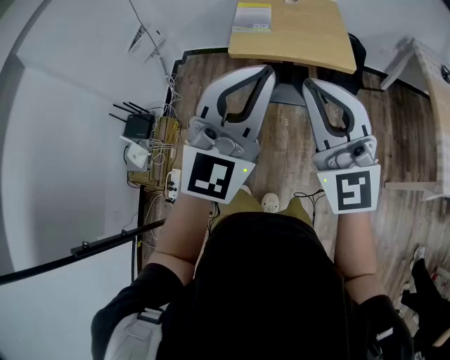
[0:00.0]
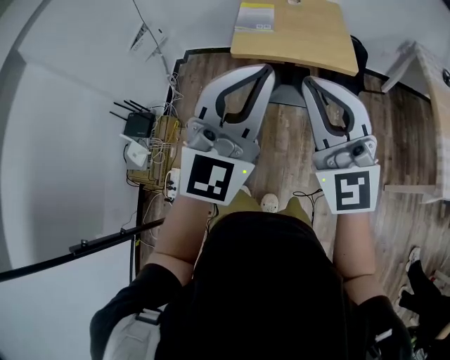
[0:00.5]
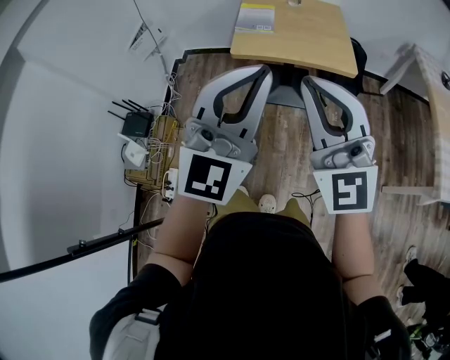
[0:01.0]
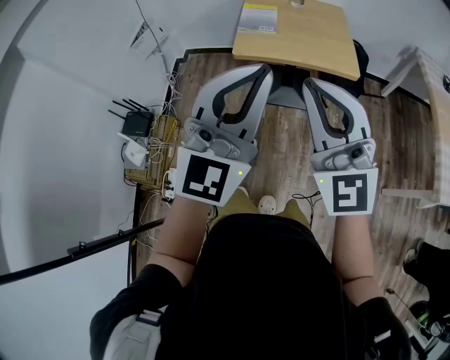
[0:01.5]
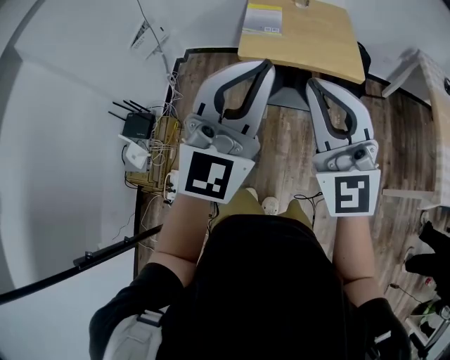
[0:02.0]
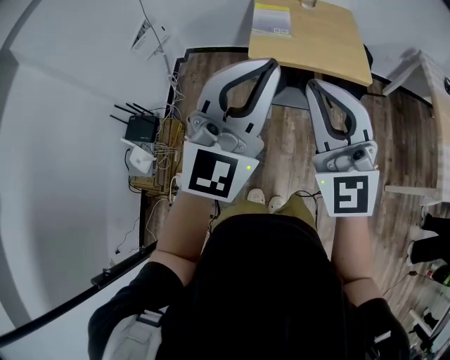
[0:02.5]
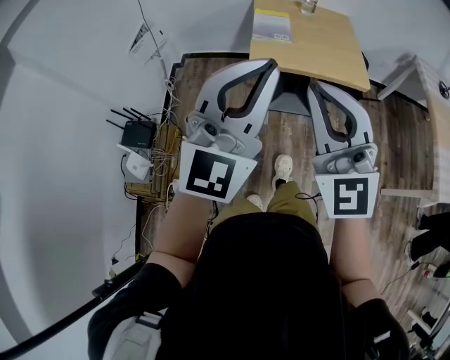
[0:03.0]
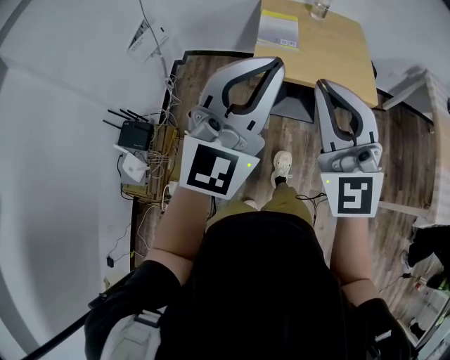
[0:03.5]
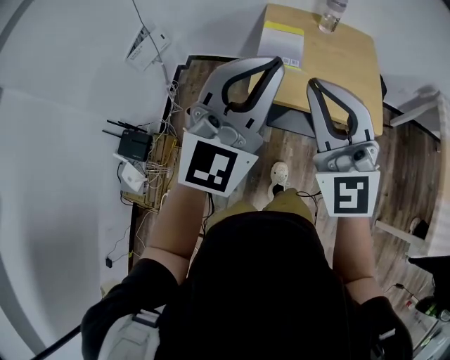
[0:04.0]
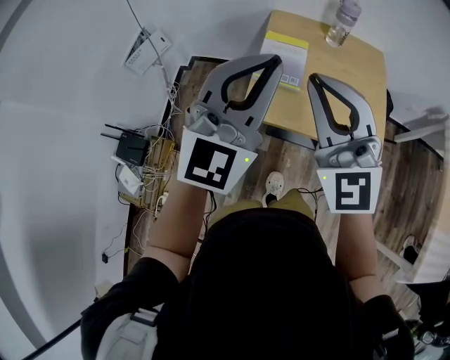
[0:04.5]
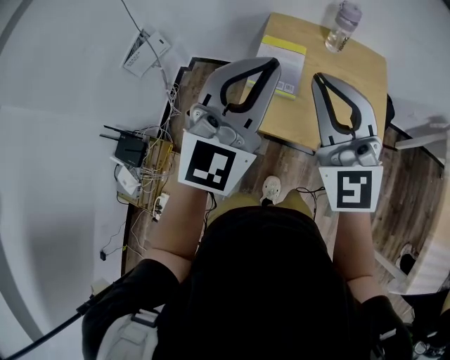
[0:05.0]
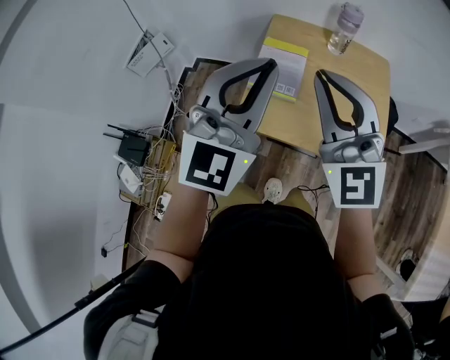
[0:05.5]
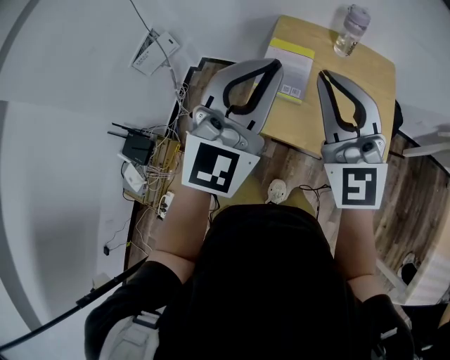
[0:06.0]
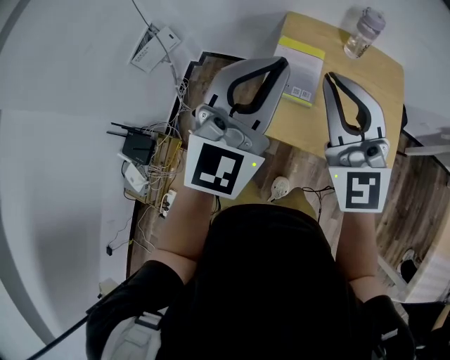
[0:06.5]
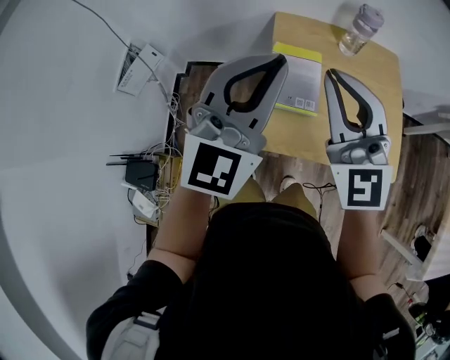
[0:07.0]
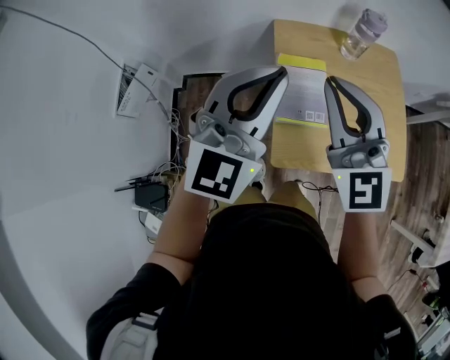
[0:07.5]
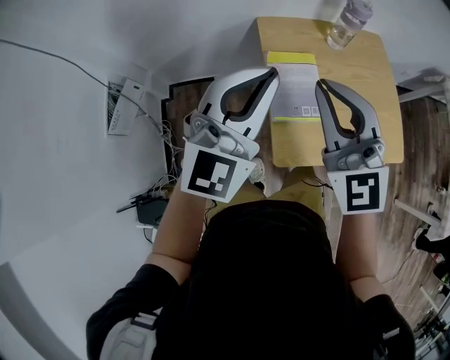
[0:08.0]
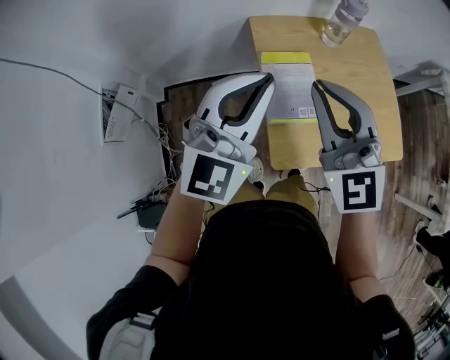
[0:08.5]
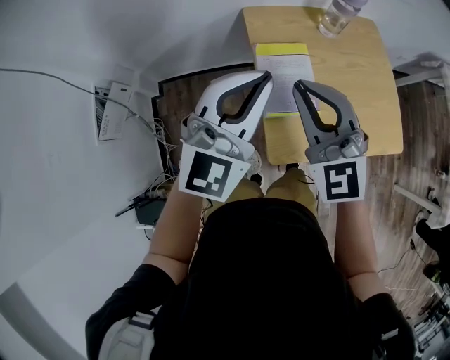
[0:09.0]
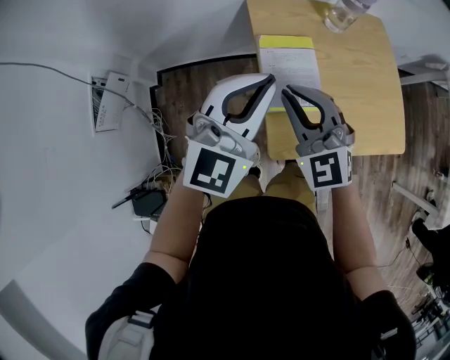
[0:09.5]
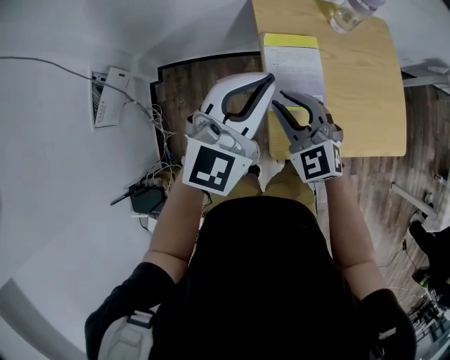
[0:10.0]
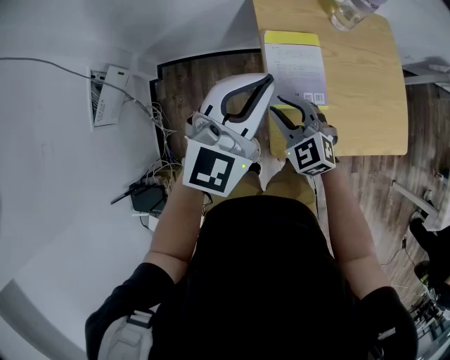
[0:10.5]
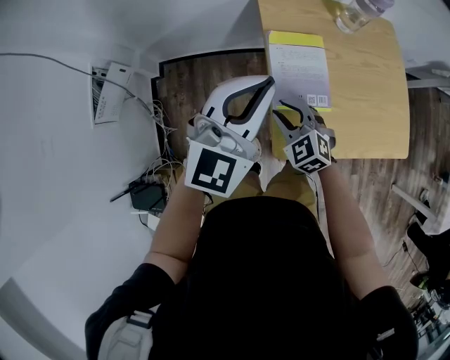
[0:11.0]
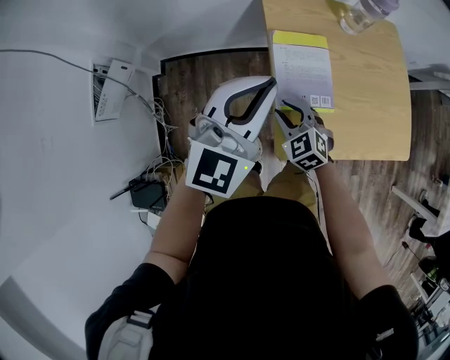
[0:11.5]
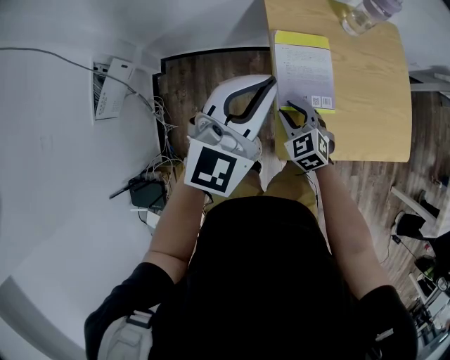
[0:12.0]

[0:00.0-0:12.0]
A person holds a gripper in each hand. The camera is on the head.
0:00.0 to 0:02.0: The right gripper changes place by roughly 5 cm, while the left gripper moves to the left, some 5 cm.
0:02.0 to 0:04.0: Both grippers move forward, approximately 25 cm.
0:04.0 to 0:06.0: Both grippers travel together forward and to the right, approximately 20 cm.
0:06.0 to 0:08.0: The left gripper shifts roughly 20 cm forward and to the left, and rotates about 20 degrees. Meanwhile the right gripper shifts about 20 cm to the left and forward, and changes its angle by some 20 degrees.
0:08.0 to 0:10.0: The right gripper shifts approximately 20 cm downward, and rotates some 30 degrees. Meanwhile the left gripper is displaced downward by approximately 10 cm.
0:10.0 to 0:12.0: The right gripper shifts about 15 cm downward, and turns by roughly 20 degrees.

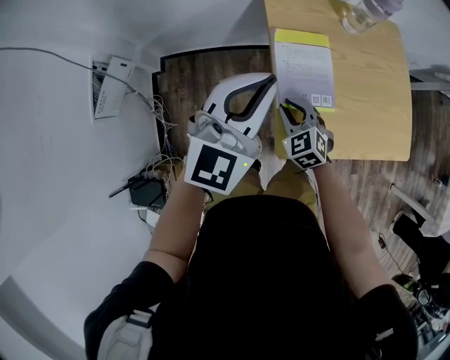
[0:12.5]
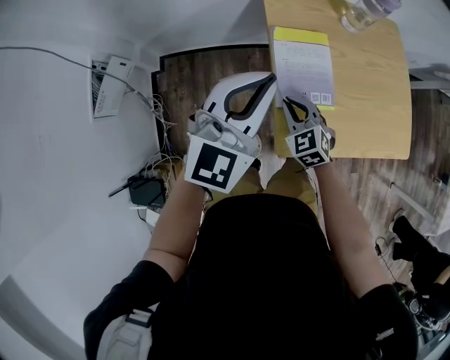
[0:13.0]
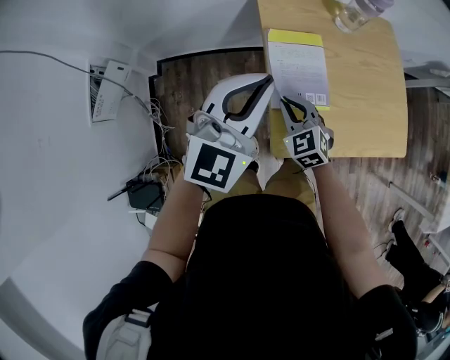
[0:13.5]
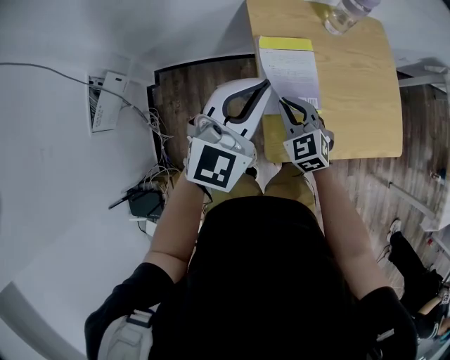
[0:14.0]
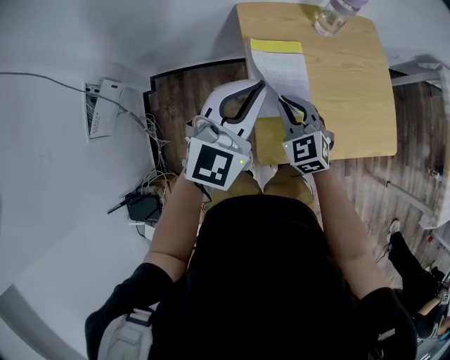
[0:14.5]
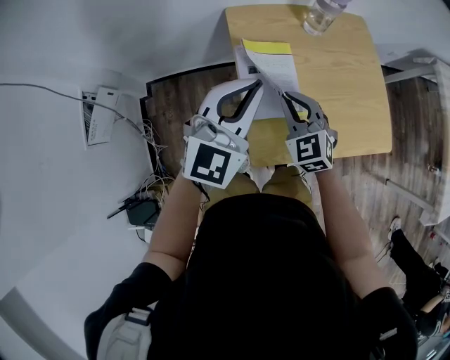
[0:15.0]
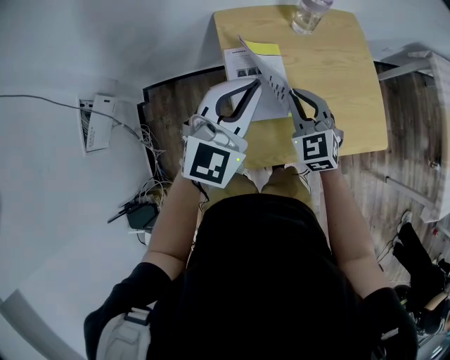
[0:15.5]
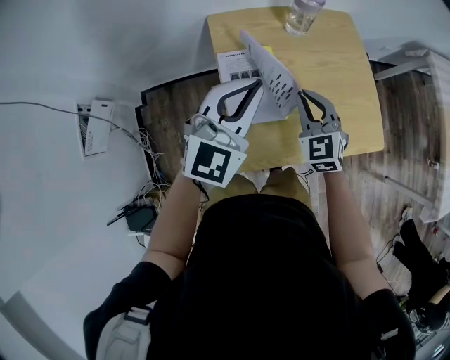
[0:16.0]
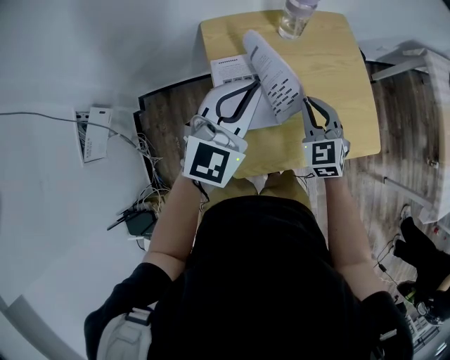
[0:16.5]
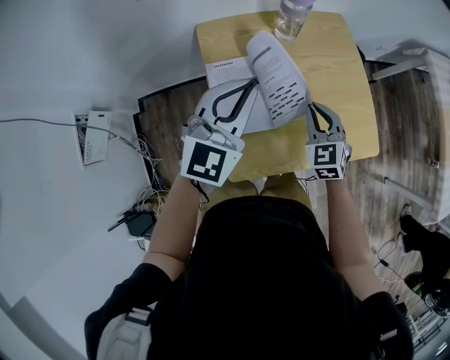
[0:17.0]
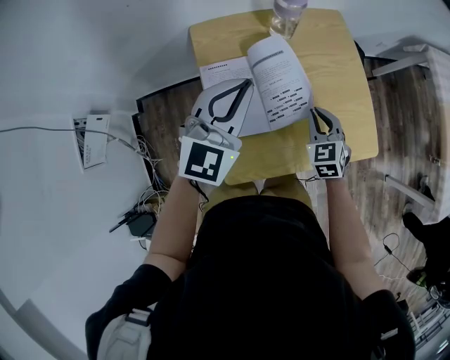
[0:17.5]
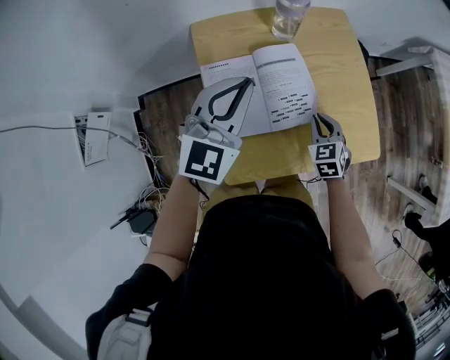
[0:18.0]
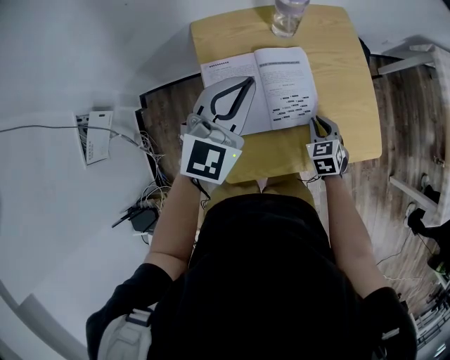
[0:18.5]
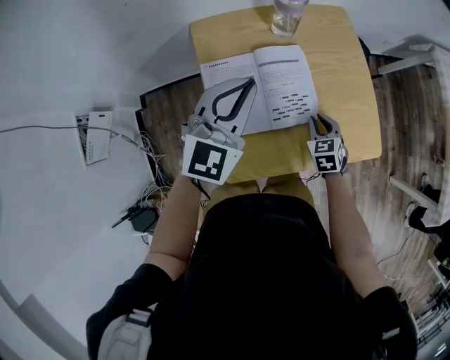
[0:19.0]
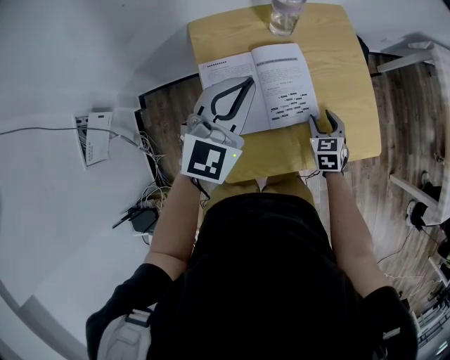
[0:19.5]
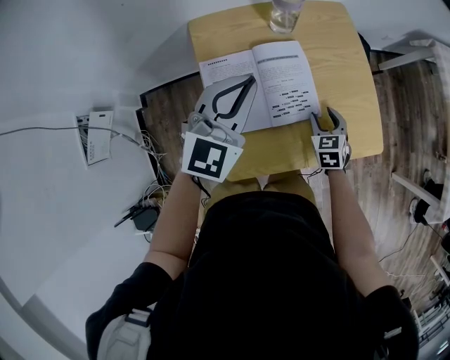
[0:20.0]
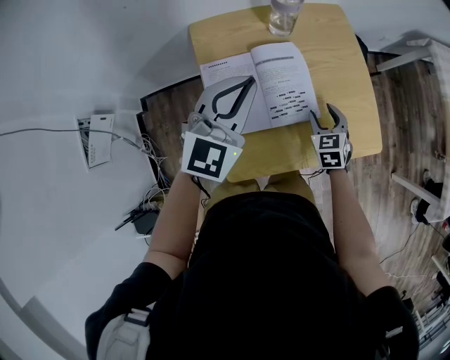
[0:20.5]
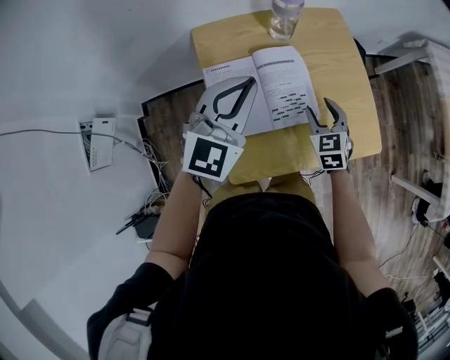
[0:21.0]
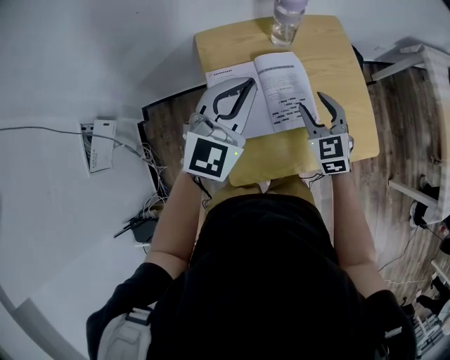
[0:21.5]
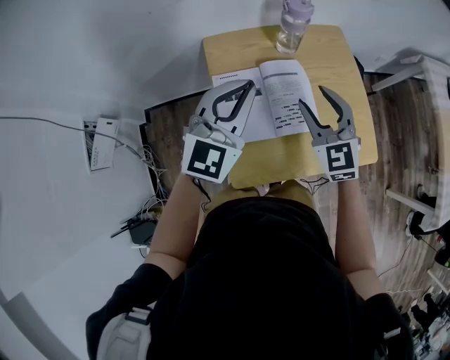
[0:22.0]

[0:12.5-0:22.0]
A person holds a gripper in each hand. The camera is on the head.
0:12.5 to 0:14.5: The right gripper travels upward by some 10 cm.
0:14.5 to 0:16.5: The right gripper shifts approximately 15 cm to the right, while the left gripper heads to the right and forward, covering about 10 cm.
0:16.5 to 0:18.0: The right gripper is displaced downward and to the right by roughly 15 cm, while the left gripper shifts by roughly 5 cm.
0:18.0 to 0:20.0: The right gripper opens up.
0:20.0 to 0:22.0: The right gripper is displaced upward and to the left by approximately 25 cm, and swivels about 40 degrees; the left gripper is displaced upward by about 5 cm.

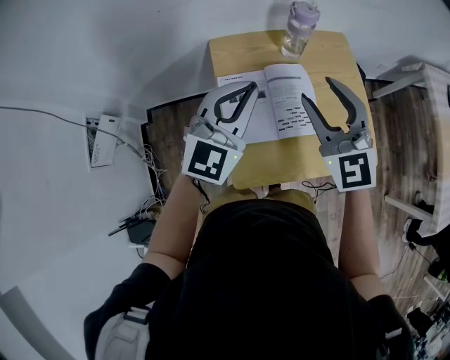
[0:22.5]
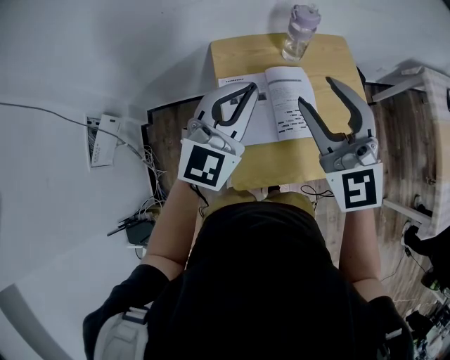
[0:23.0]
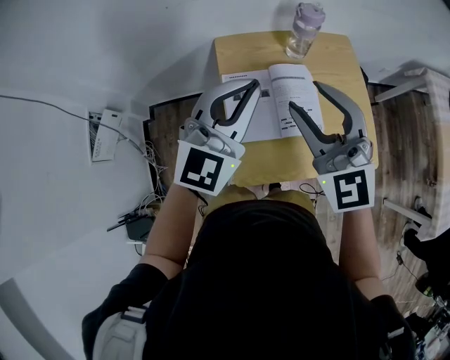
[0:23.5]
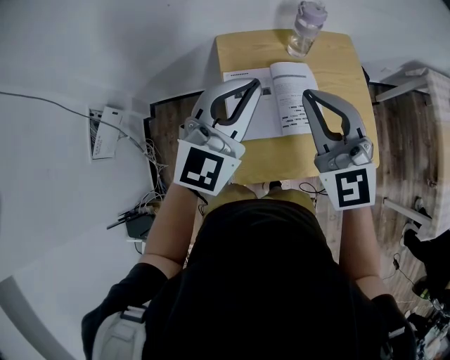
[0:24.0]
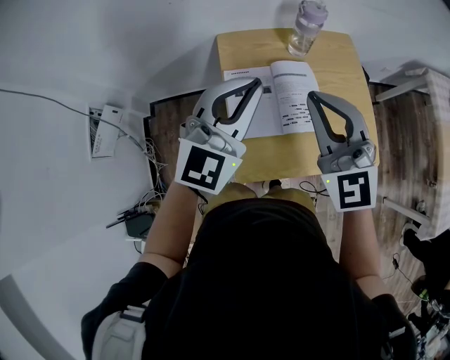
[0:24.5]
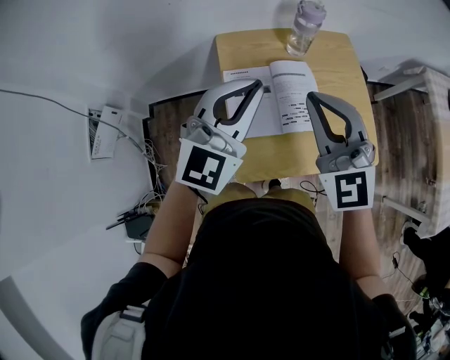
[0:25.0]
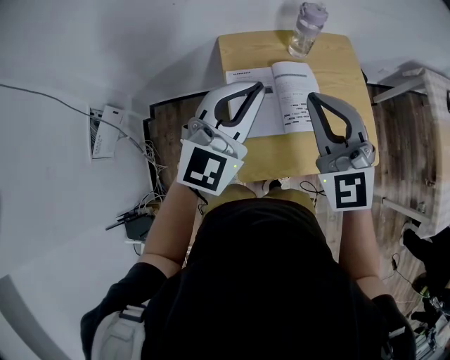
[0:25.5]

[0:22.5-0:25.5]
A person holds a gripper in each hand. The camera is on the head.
0:22.5 to 0:24.0: The right gripper changes place by roughly 5 cm, and closes, while the left gripper moves some 5 cm.
0:24.0 to 0:25.5: The grippers stay close to where they were, moving slightly.

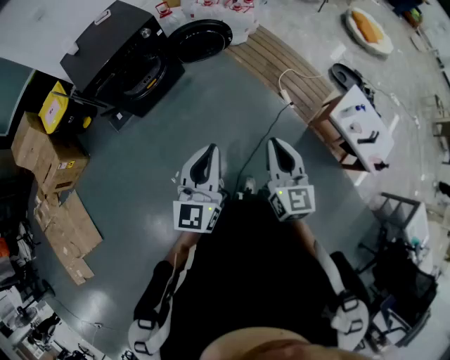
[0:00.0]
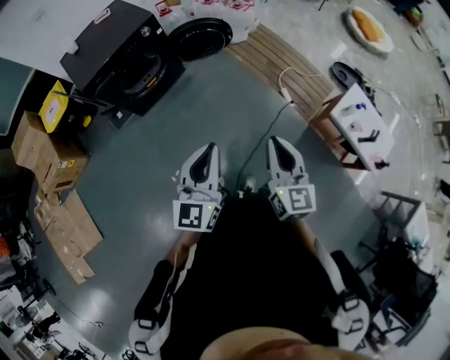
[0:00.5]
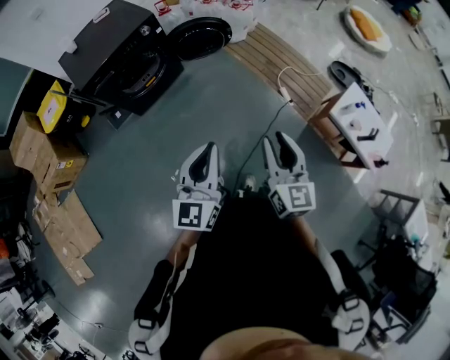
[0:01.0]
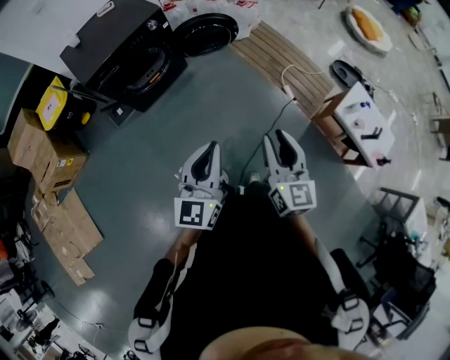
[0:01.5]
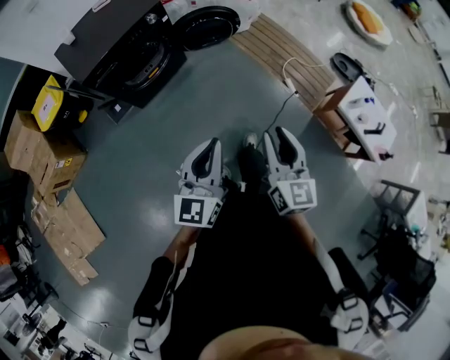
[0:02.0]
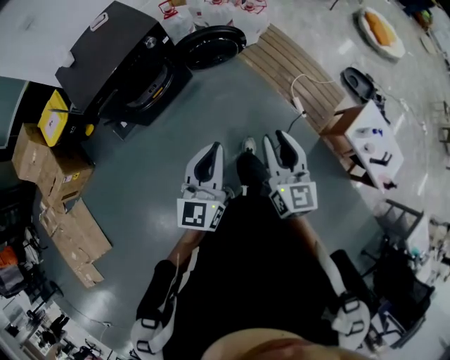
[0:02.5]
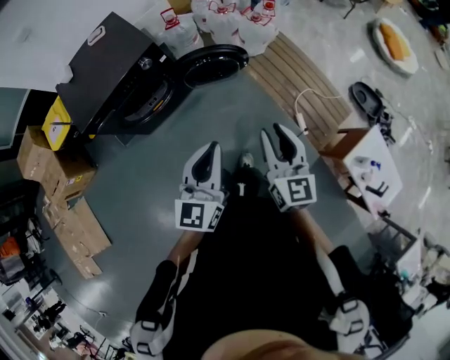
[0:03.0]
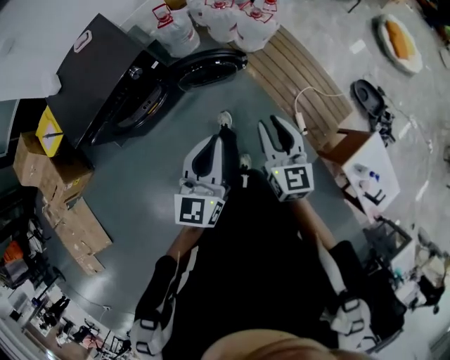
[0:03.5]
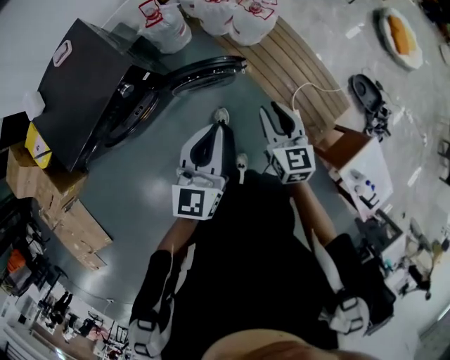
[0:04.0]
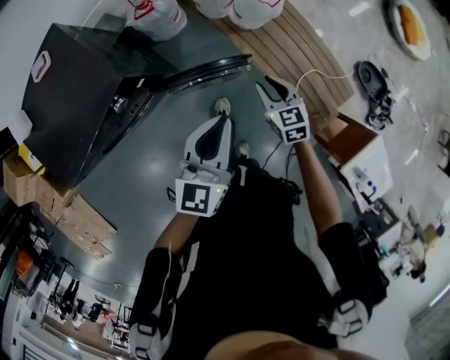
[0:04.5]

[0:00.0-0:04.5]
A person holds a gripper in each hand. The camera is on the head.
0:00.0 to 0:02.0: Both grippers travel together to the left, some 10 cm. The right gripper opens its fingers.
0:02.0 to 0:04.5: Both grippers are carried forward, about 70 cm. The right gripper angles its fingers downward, by some 30 degrees.
